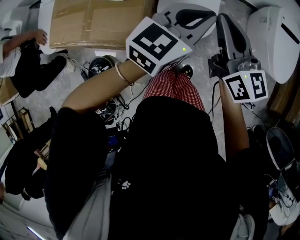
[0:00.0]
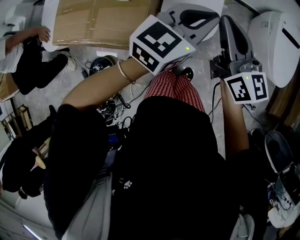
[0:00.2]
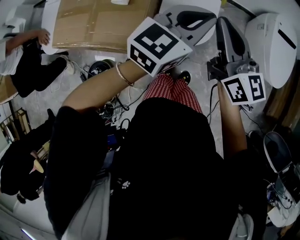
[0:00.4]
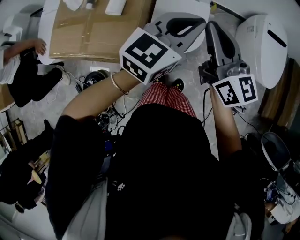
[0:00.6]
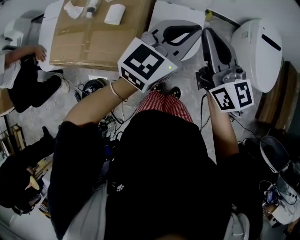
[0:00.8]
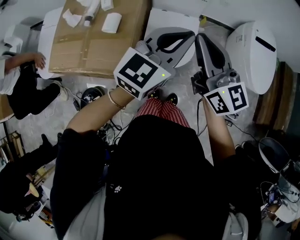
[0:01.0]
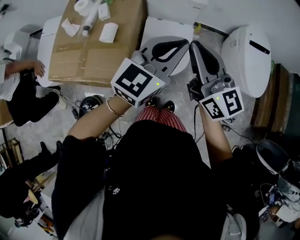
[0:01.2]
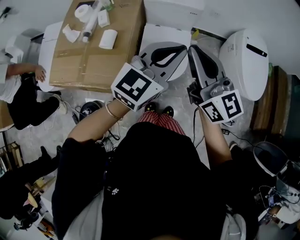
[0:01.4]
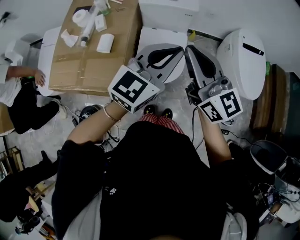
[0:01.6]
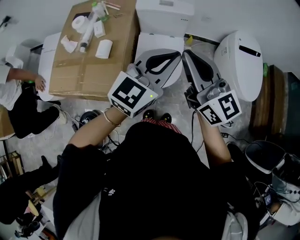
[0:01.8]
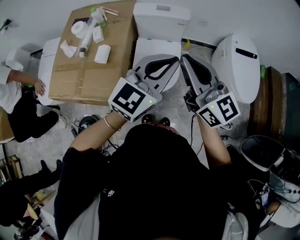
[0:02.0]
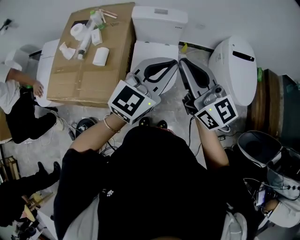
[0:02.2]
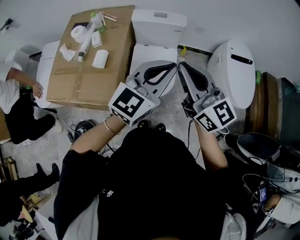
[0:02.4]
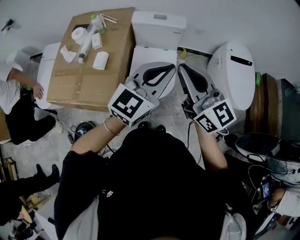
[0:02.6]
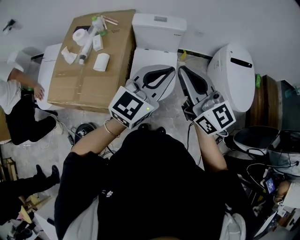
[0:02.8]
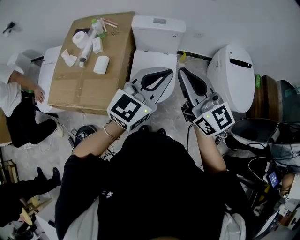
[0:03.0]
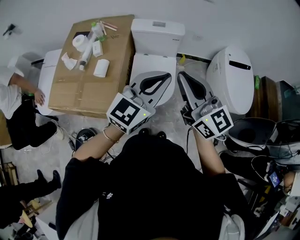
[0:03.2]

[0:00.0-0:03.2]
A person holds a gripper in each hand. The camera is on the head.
0:00.0 to 0:01.6: The grippers both shift upward by roughly 10 cm.
0:01.6 to 0:03.2: The grippers stay close to where they were, moving slightly.

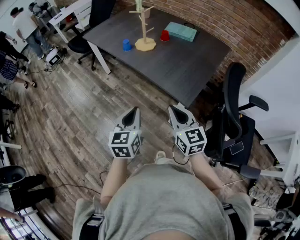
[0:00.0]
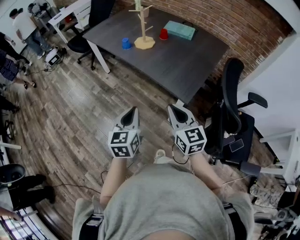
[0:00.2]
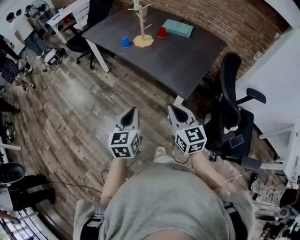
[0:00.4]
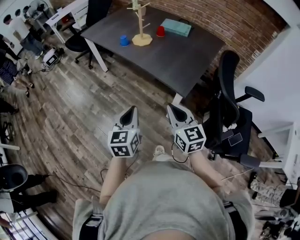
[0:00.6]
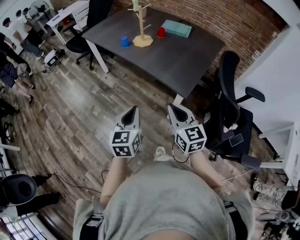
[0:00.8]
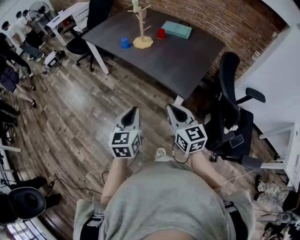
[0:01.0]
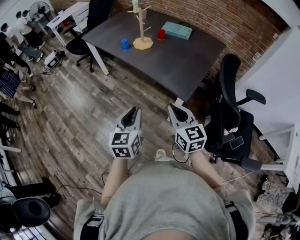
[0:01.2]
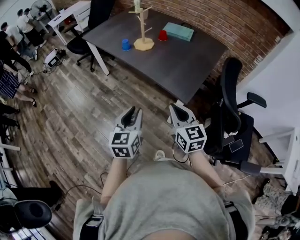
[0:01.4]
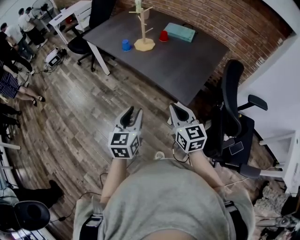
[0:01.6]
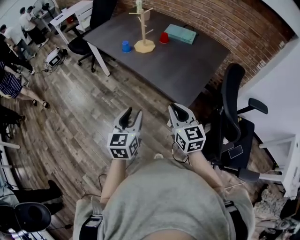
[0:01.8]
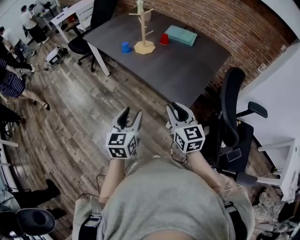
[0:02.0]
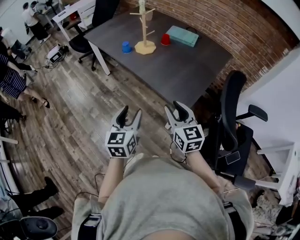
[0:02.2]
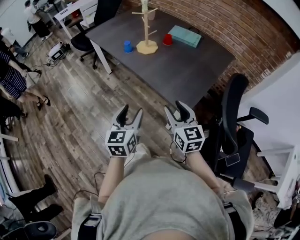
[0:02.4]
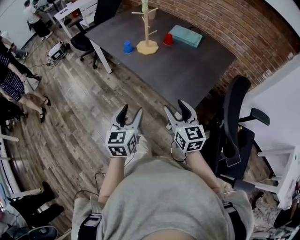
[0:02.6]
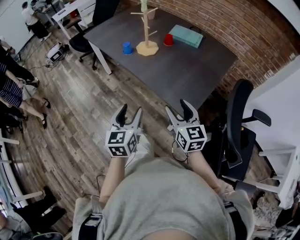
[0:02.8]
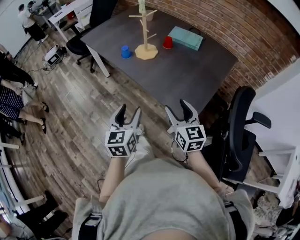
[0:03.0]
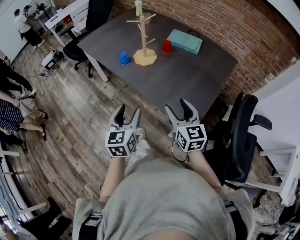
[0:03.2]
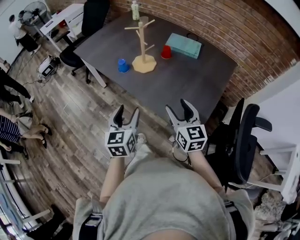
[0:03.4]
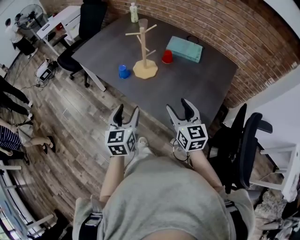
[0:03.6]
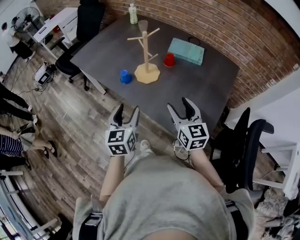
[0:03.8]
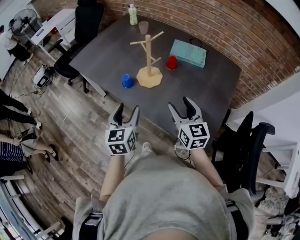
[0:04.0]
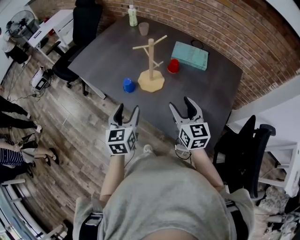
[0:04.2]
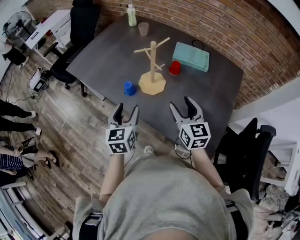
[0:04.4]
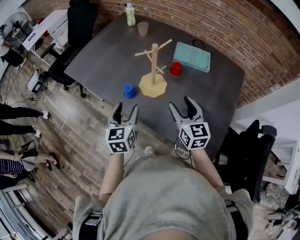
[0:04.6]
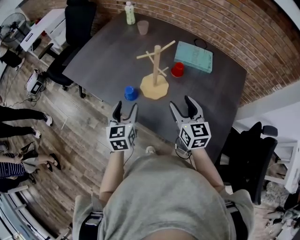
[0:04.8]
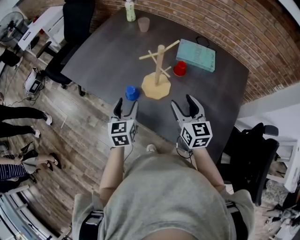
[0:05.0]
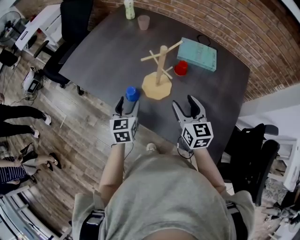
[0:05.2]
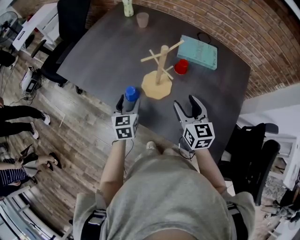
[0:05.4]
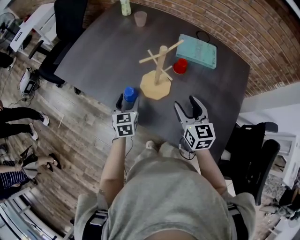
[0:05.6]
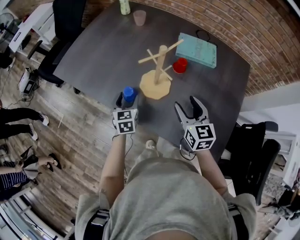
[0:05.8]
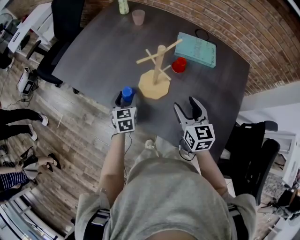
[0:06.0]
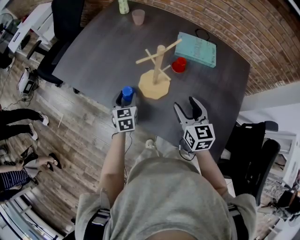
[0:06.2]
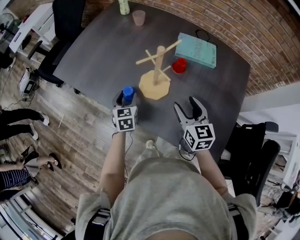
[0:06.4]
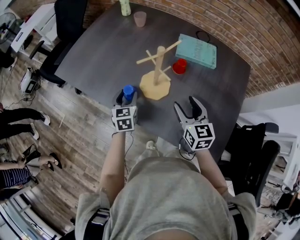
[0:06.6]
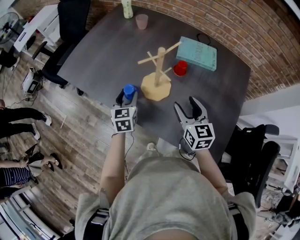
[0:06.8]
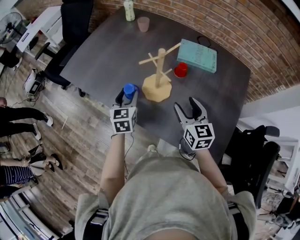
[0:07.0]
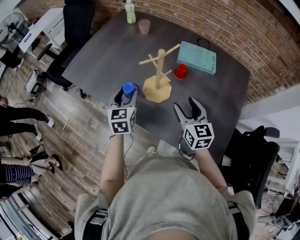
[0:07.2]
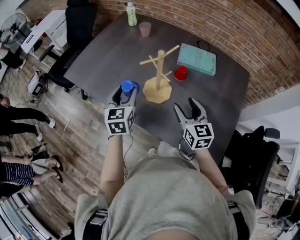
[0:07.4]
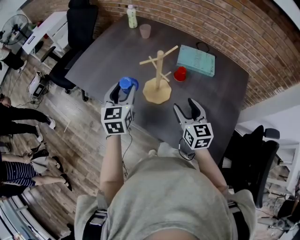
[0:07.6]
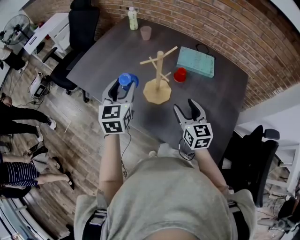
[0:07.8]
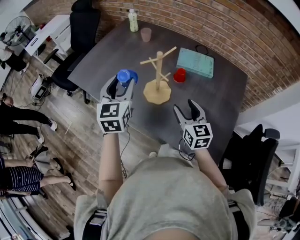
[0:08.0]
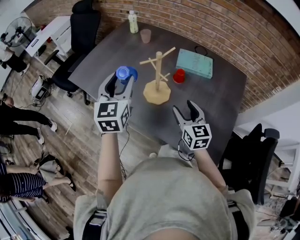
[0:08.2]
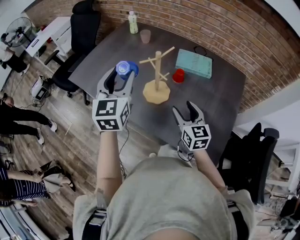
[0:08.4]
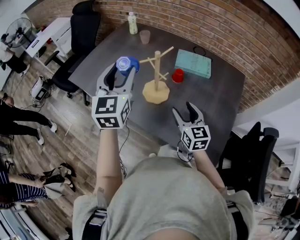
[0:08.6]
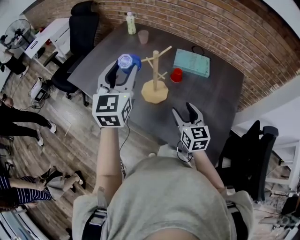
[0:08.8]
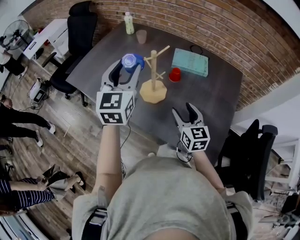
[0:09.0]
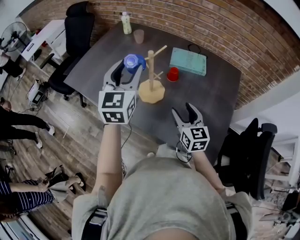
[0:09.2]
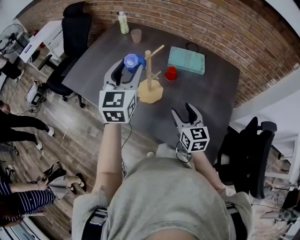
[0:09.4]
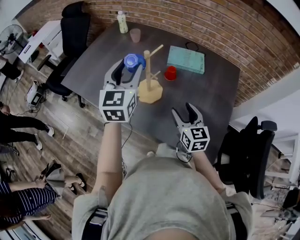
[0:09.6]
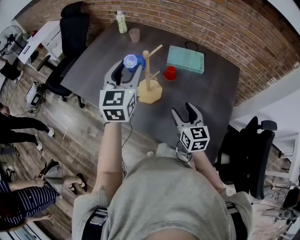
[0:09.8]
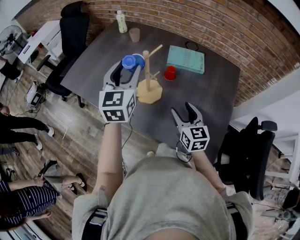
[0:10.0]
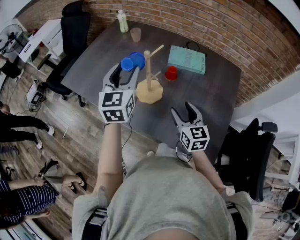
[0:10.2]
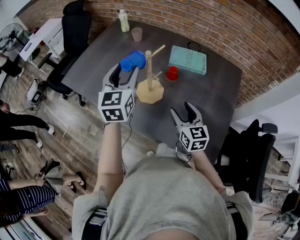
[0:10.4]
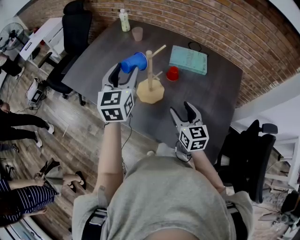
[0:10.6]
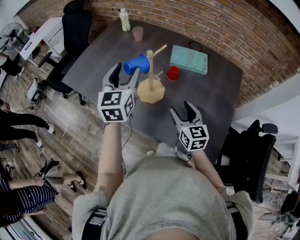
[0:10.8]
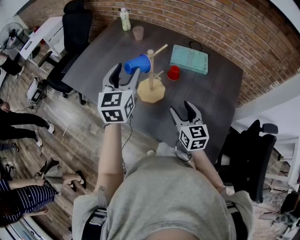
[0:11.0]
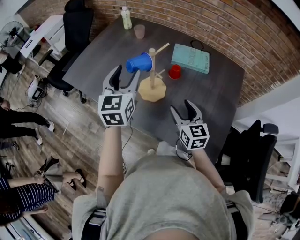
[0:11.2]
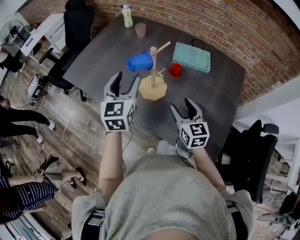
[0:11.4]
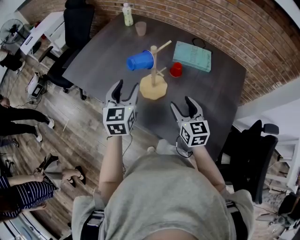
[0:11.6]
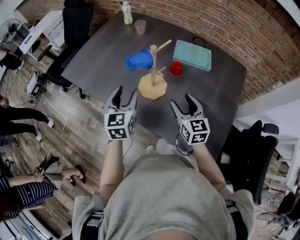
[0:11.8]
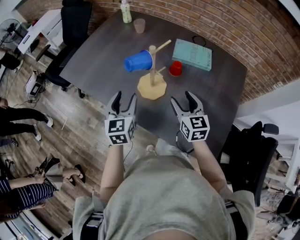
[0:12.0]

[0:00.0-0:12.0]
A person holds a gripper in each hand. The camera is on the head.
0:00.0 to 0:01.6: The left gripper opens its fingers.
0:01.6 to 0:03.0: The two grippers go about 15 cm forward. The right gripper opens up, while the left gripper opens its fingers.
0:03.0 to 0:04.4: Both grippers travel together forward, approximately 30 cm.
0:04.4 to 0:06.0: The left gripper goes about 20 cm forward and downward, while the right gripper travels forward and downward by about 10 cm.
0:06.0 to 0:07.6: The left gripper heads upward, covering some 20 cm.
0:07.6 to 0:09.0: The left gripper shifts approximately 15 cm upward.
0:09.0 to 0:10.4: The left gripper heads downward, covering about 5 cm.
0:10.4 to 0:12.0: The left gripper goes roughly 15 cm downward and backward.

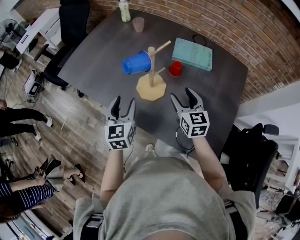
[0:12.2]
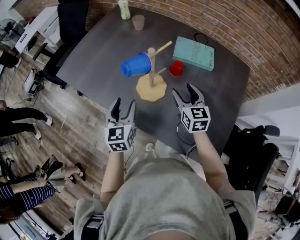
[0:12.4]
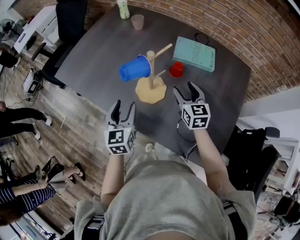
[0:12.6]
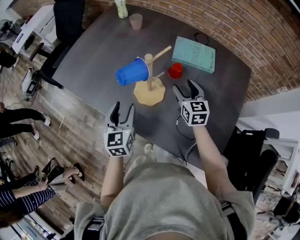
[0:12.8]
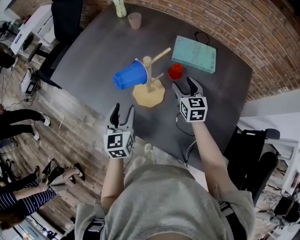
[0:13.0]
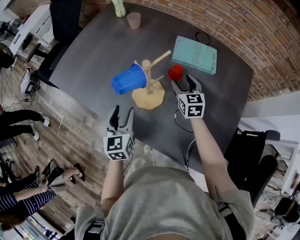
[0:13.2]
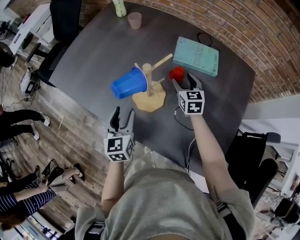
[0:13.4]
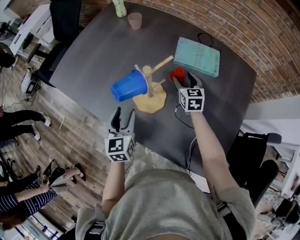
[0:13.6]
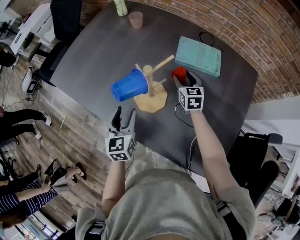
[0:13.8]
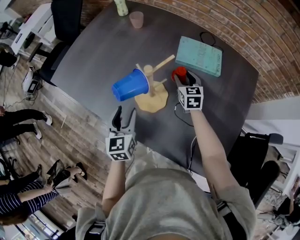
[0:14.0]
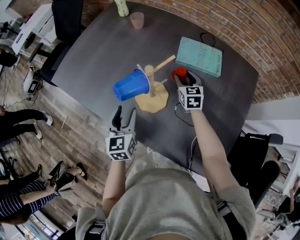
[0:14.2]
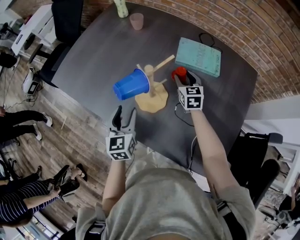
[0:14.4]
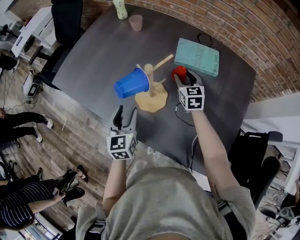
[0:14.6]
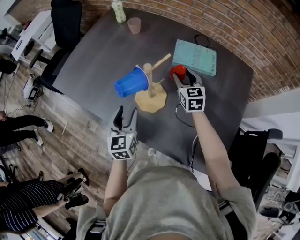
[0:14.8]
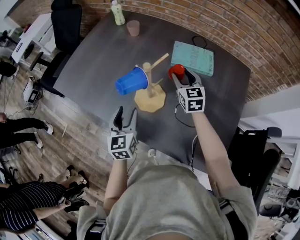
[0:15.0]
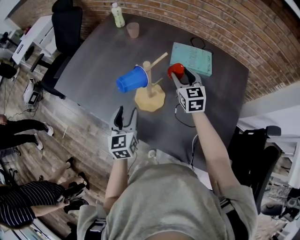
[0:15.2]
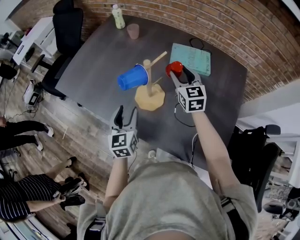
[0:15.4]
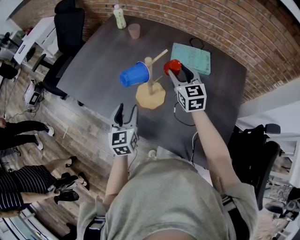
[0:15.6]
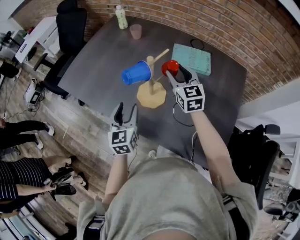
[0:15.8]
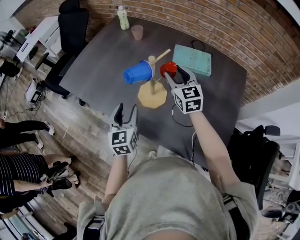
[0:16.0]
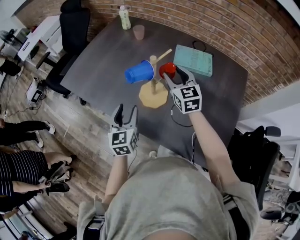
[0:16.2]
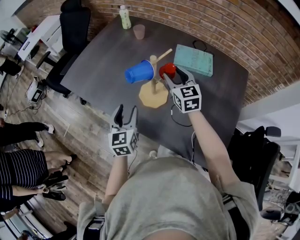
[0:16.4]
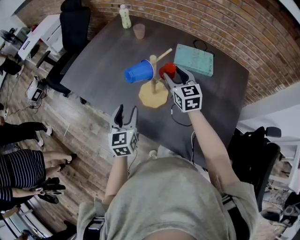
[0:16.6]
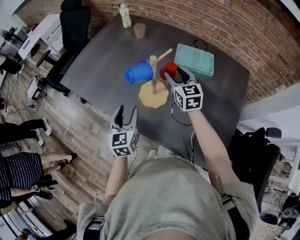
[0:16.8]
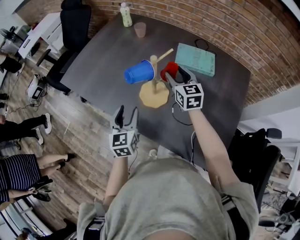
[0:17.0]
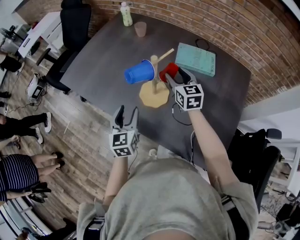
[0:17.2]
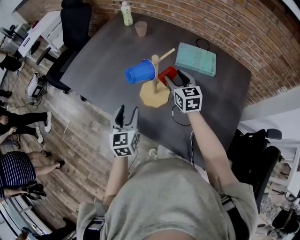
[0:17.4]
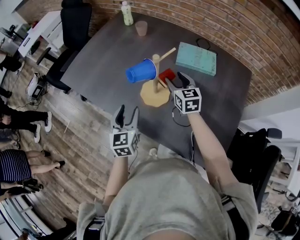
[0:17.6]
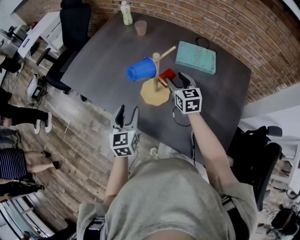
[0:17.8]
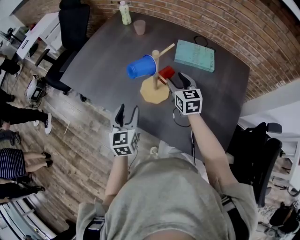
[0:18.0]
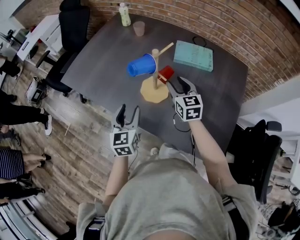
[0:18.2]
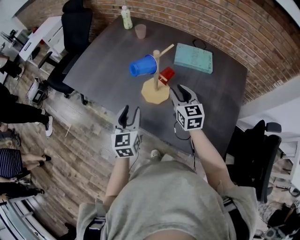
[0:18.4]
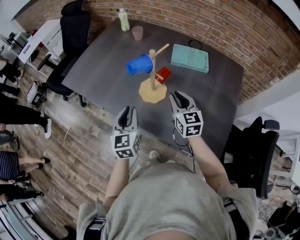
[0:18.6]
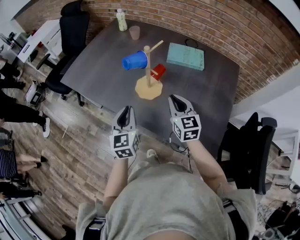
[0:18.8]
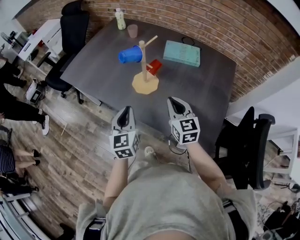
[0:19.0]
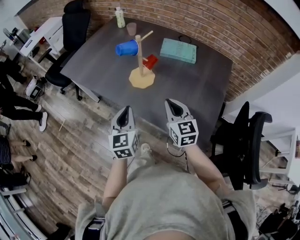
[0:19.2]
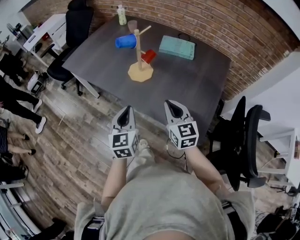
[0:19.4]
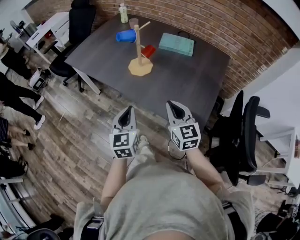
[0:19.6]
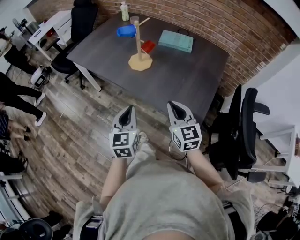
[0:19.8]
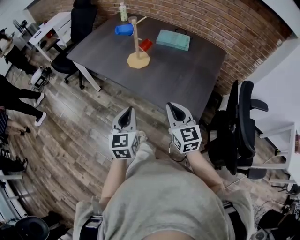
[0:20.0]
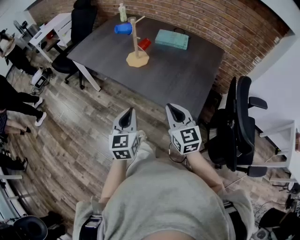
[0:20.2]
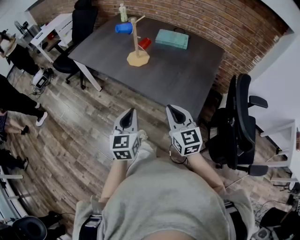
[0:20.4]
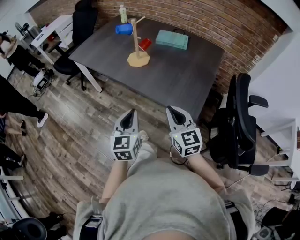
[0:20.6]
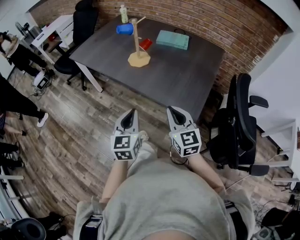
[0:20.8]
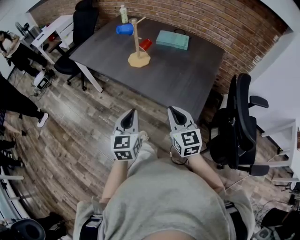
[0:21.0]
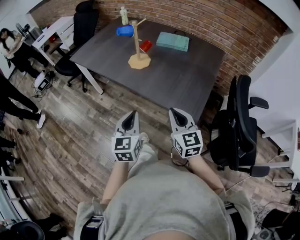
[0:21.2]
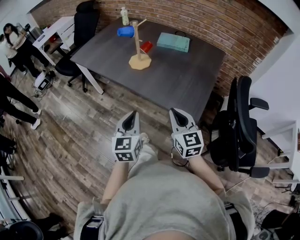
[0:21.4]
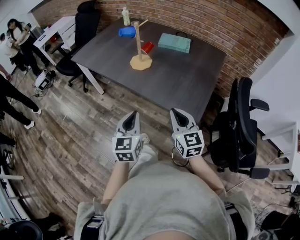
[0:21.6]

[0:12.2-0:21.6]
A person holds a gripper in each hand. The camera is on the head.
0:12.2 to 0:13.8: The right gripper moves forward and downward, approximately 20 cm. The left gripper heads downward, covering about 5 cm.
0:13.8 to 0:15.4: The right gripper is displaced upward by some 15 cm.
0:15.4 to 0:17.0: There are only small adjustments of the grippers.
0:17.0 to 0:18.4: The right gripper is displaced backward by approximately 10 cm.
0:18.4 to 0:20.0: The two grippers go some 35 cm backward. The left gripper closes its fingers; the right gripper closes its fingers.
0:20.0 to 0:21.6: There are only small adjustments of the grippers.
